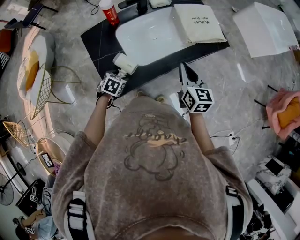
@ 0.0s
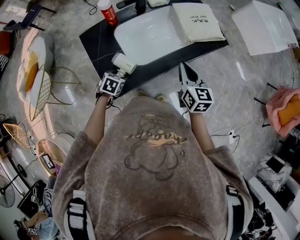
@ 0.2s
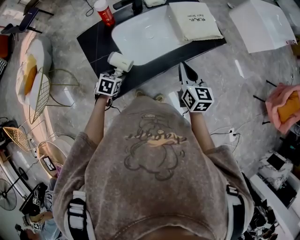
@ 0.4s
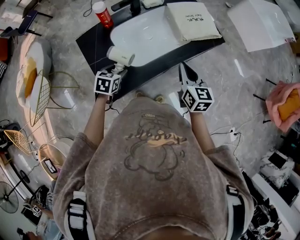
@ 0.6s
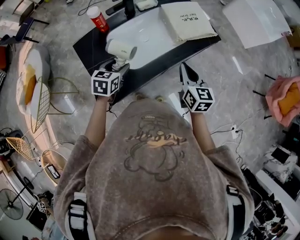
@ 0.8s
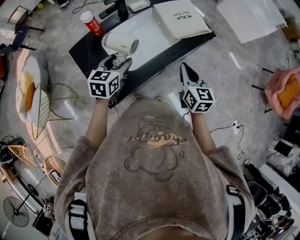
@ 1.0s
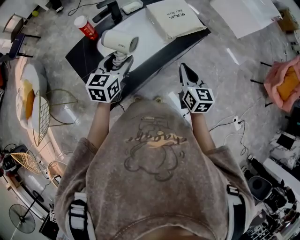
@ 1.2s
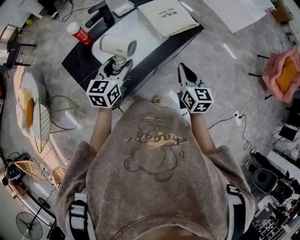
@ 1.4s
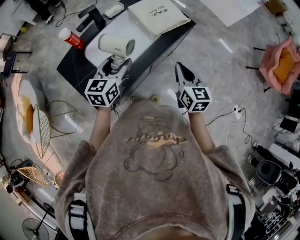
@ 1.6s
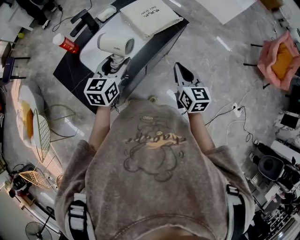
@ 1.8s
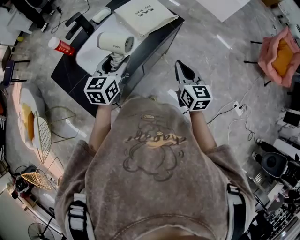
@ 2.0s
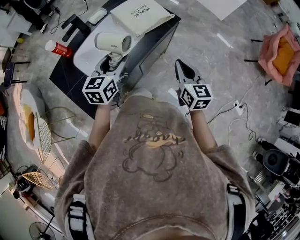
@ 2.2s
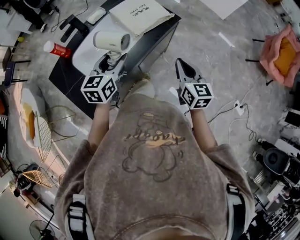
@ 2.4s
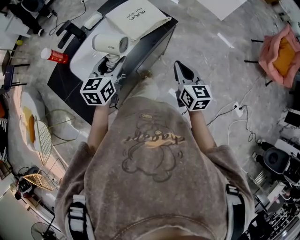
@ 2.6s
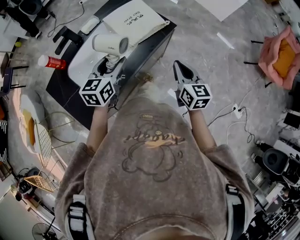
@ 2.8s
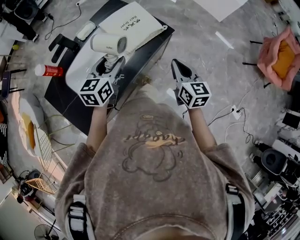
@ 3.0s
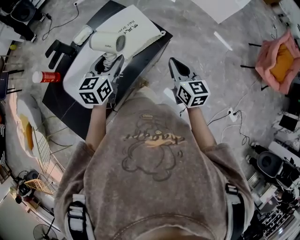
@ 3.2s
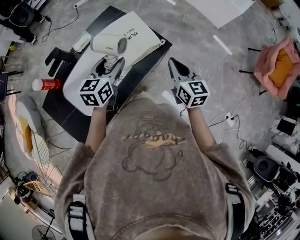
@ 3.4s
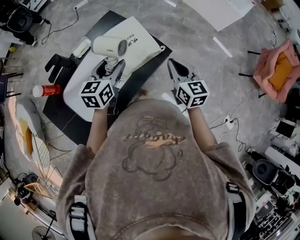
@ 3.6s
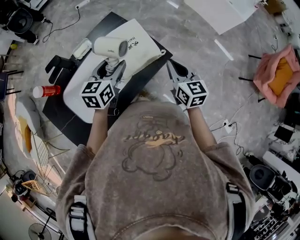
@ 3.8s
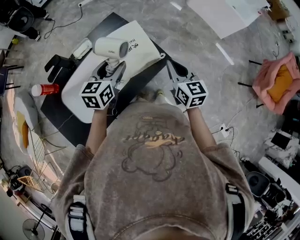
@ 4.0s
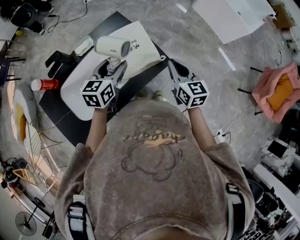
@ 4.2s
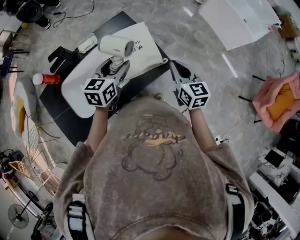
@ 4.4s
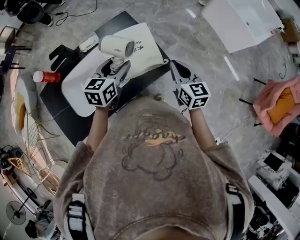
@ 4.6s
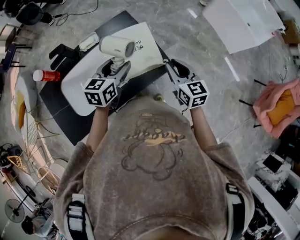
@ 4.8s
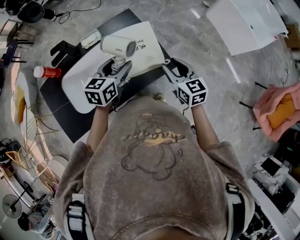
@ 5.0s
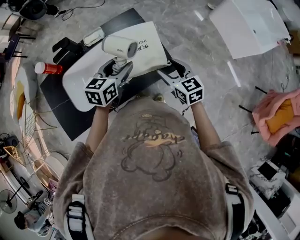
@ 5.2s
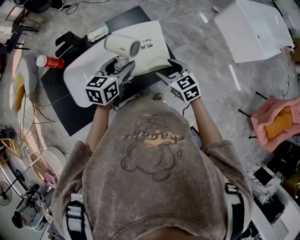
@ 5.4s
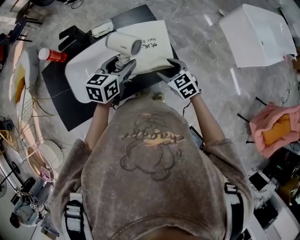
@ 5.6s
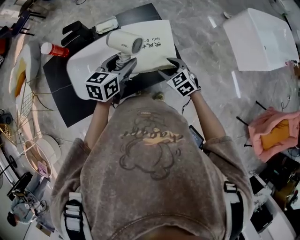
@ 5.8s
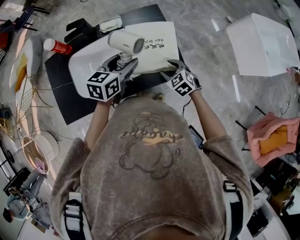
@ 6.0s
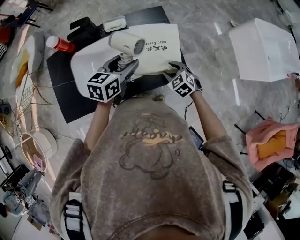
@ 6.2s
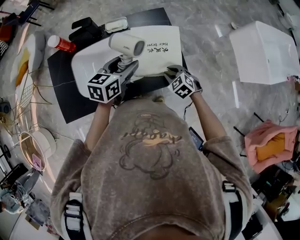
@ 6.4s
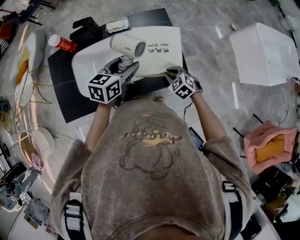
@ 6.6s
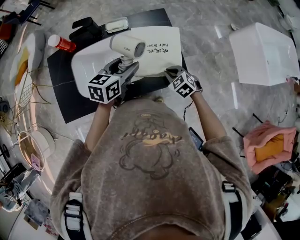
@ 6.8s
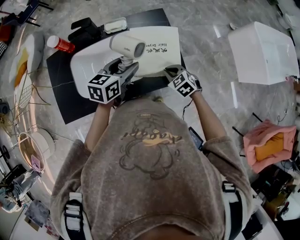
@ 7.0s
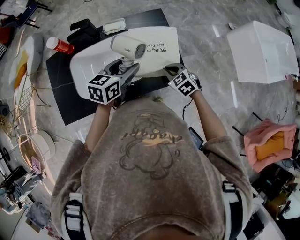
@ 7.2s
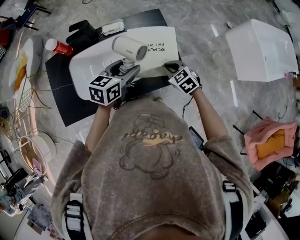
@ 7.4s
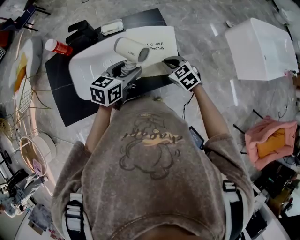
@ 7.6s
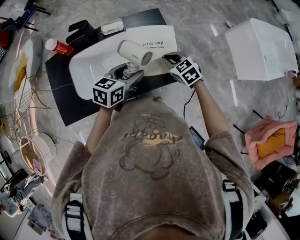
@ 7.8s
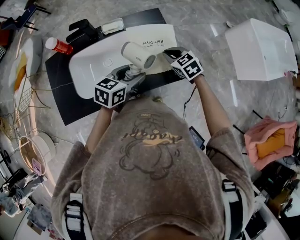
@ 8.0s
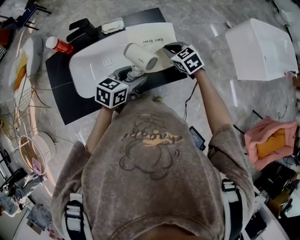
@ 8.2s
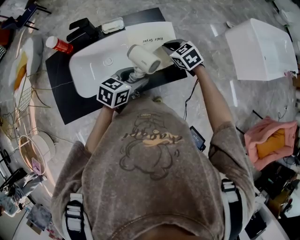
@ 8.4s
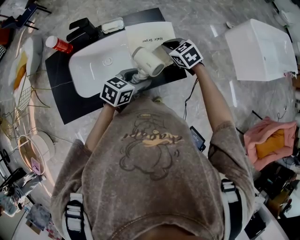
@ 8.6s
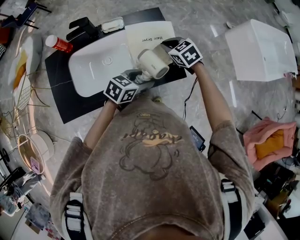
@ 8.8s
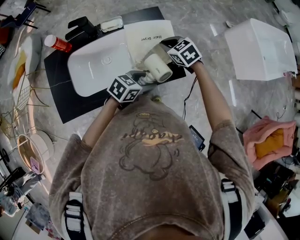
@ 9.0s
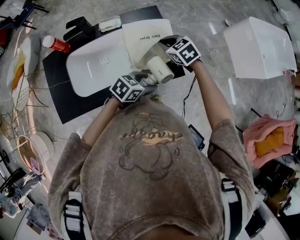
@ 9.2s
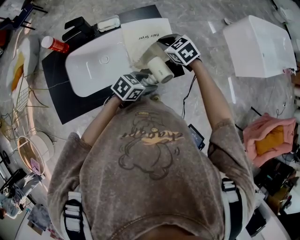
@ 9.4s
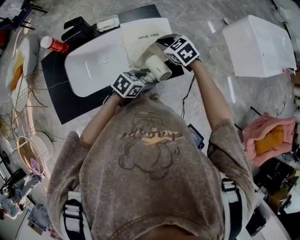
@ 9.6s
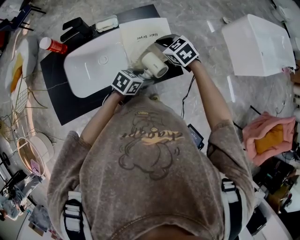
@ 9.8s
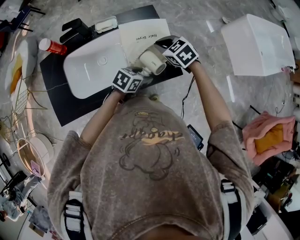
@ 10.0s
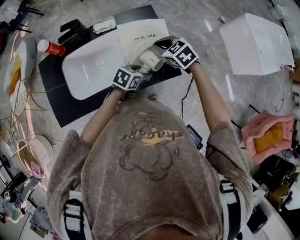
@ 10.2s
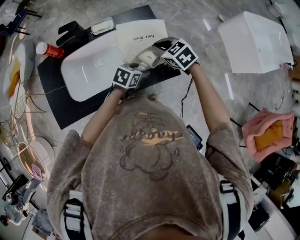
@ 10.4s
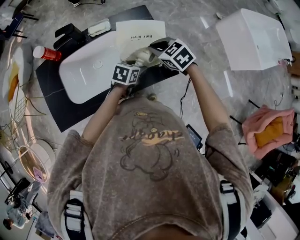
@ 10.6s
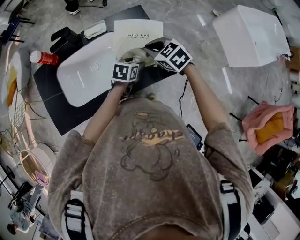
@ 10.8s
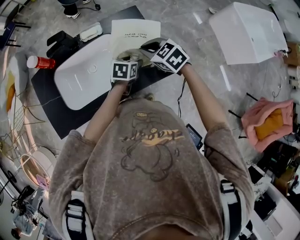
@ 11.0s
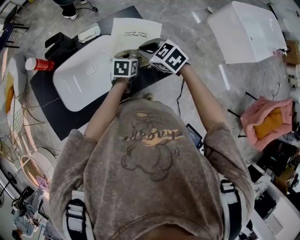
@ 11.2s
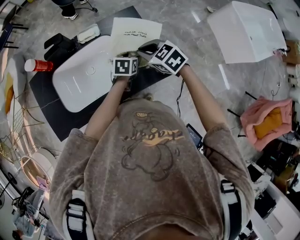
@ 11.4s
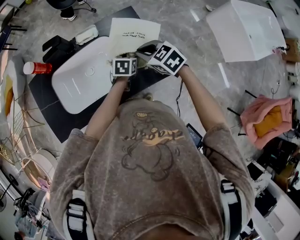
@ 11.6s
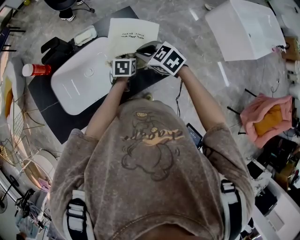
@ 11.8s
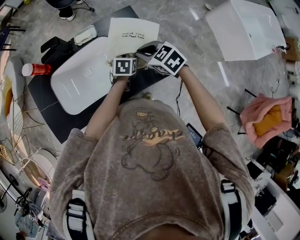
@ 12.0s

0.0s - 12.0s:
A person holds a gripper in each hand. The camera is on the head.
0.0s - 1.6s: The right gripper shifts about 10 cm to the right; the left gripper travels upward, to the right and forward by roughly 30 cm, and tilts its fingers about 50 degrees upward.
1.6s - 3.0s: Both grippers travel together forward and to the right, approximately 20 cm.
3.0s - 4.4s: Both grippers travel together forward, about 15 cm.
4.4s - 6.0s: The right gripper travels downward and to the left by about 20 cm, angles its fingers downward, by approximately 30 degrees, and opens.
6.0s - 7.6s: The right gripper shifts by approximately 5 cm, and closes its fingers.
7.6s - 9.0s: The right gripper heads forward, covering about 5 cm. Meanwhile the left gripper heads to the right, downward and backward, covering some 15 cm, and changes its angle by some 30 degrees.
9.0s - 10.4s: The left gripper heads downward, covering some 5 cm.
10.4s - 12.0s: The left gripper is displaced forward by some 10 cm.

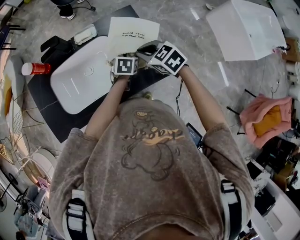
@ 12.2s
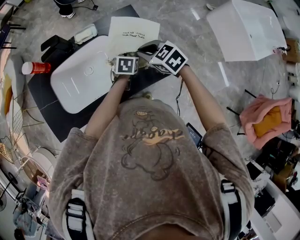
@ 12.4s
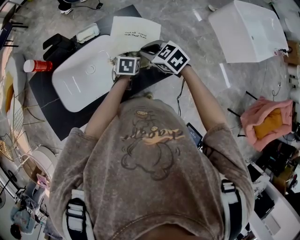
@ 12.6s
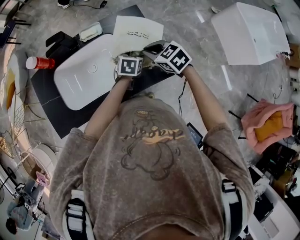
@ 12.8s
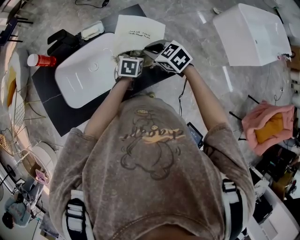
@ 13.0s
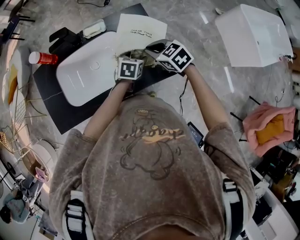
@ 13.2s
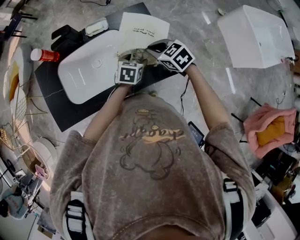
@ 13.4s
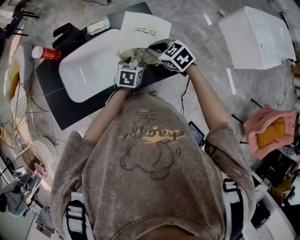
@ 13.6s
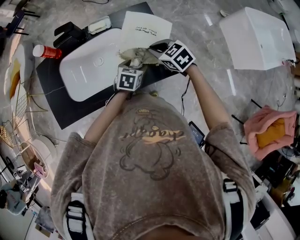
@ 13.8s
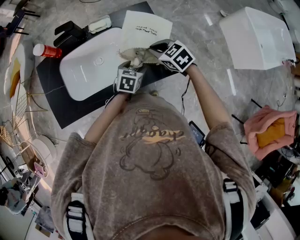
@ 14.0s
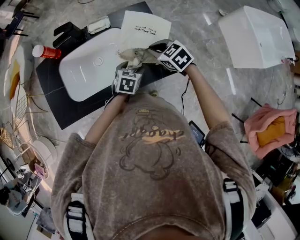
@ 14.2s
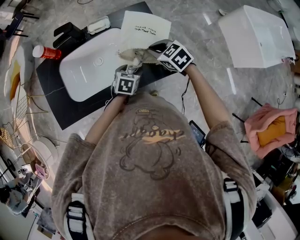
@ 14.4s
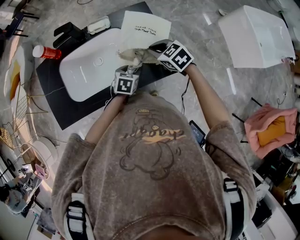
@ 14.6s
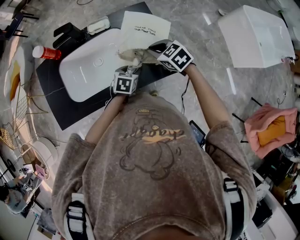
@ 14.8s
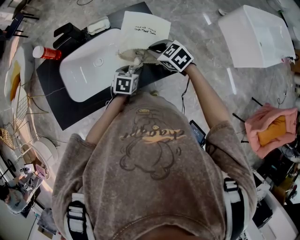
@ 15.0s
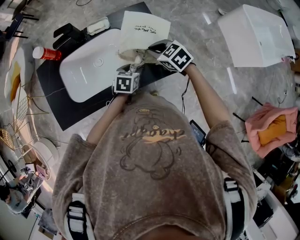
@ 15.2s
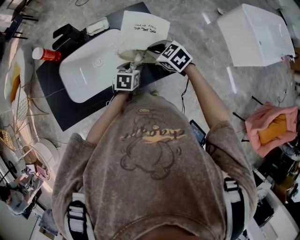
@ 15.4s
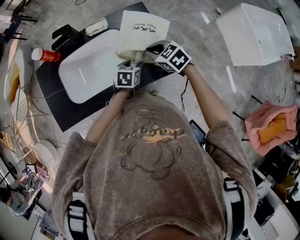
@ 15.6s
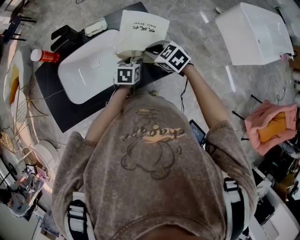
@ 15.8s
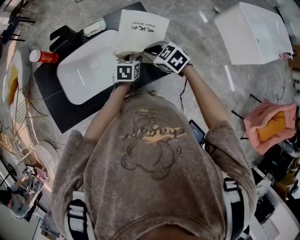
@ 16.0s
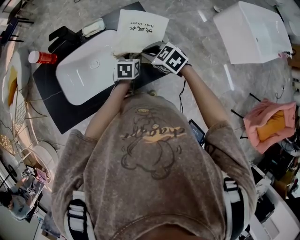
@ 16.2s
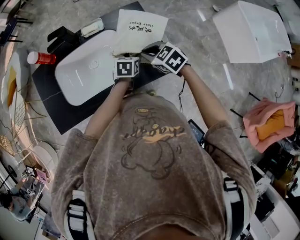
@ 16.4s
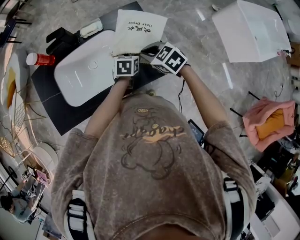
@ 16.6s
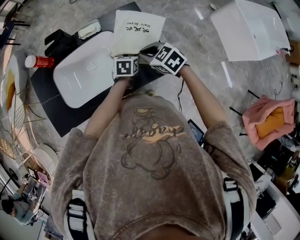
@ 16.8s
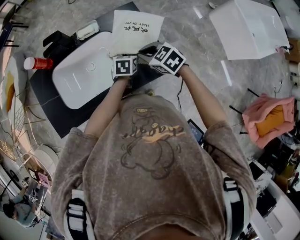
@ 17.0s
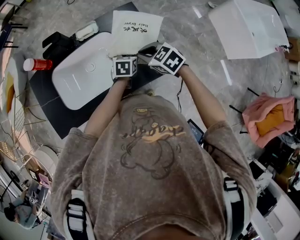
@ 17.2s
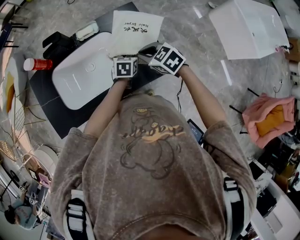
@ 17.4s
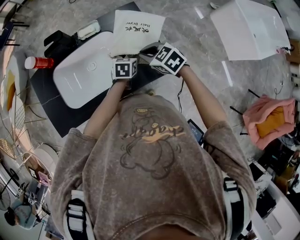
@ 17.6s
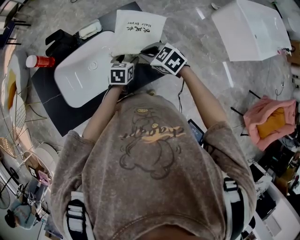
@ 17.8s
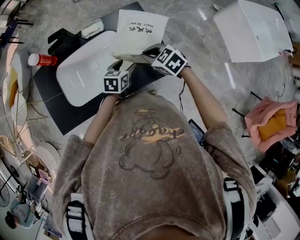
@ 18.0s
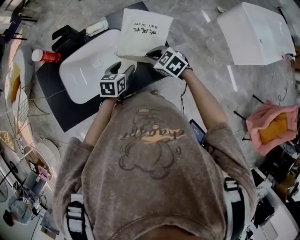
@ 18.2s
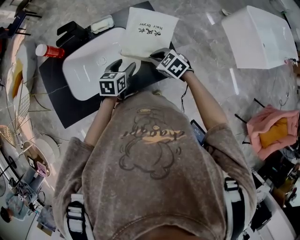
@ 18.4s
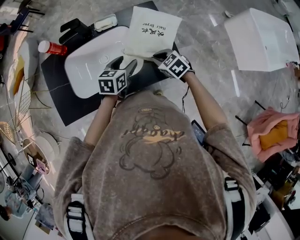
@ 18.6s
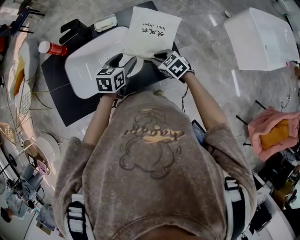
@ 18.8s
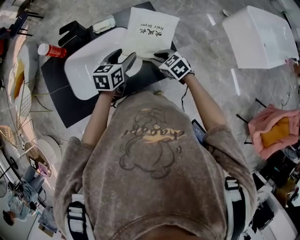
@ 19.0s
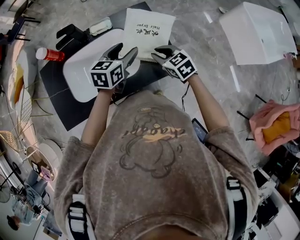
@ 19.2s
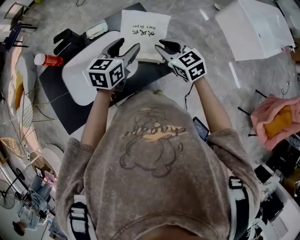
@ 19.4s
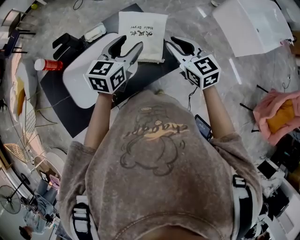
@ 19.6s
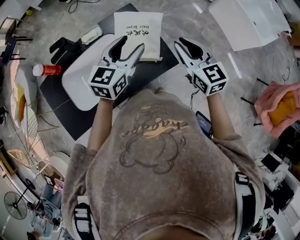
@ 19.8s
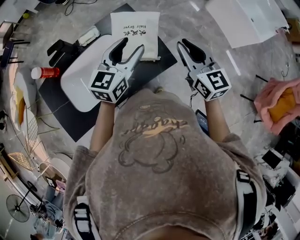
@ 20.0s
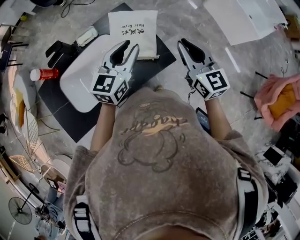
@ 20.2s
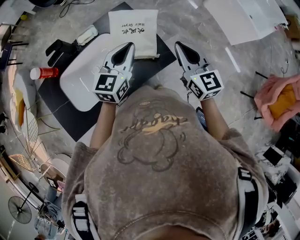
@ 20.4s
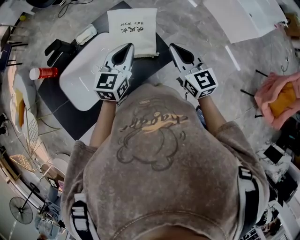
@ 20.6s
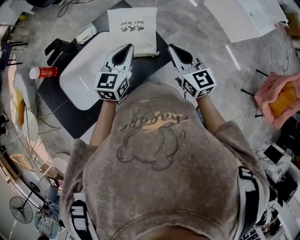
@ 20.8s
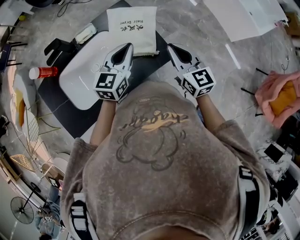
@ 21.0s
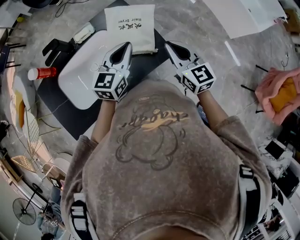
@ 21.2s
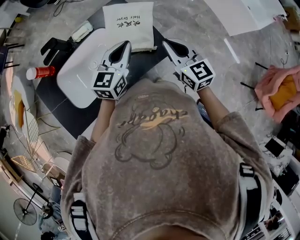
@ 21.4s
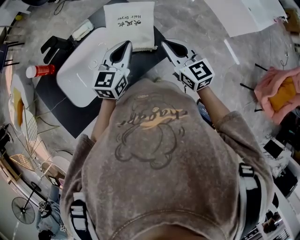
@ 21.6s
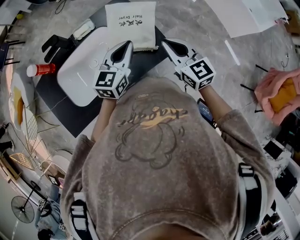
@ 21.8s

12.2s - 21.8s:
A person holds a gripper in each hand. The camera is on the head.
12.2s - 13.8s: The left gripper heads backward, covering roughly 5 cm.
13.8s - 15.4s: The grippers make only small movements.
15.4s - 17.0s: The left gripper travels forward by roughly 5 cm.
17.0s - 18.6s: The right gripper moves downward, some 5 cm. Meanwhile the left gripper goes roughly 10 cm to the left and upward.
18.6s - 20.2s: Both grippers move upward, approximately 20 cm. The right gripper tips its fingers upward by about 40 degrees, while the left gripper rotates roughly 30 degrees, and closes its fingers.
20.2s - 21.8s: The right gripper is displaced downward by some 5 cm; the left gripper changes place by approximately 5 cm.

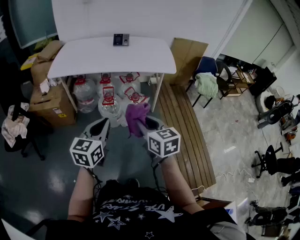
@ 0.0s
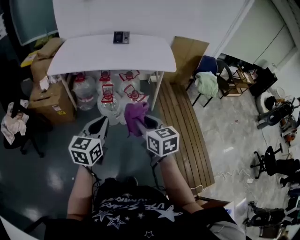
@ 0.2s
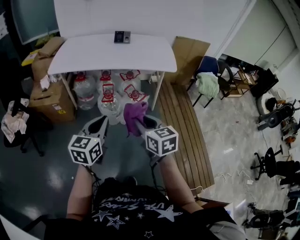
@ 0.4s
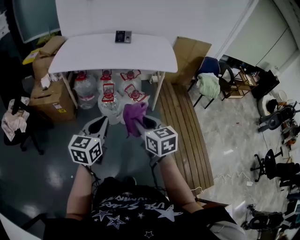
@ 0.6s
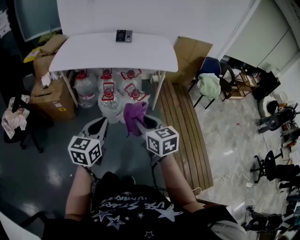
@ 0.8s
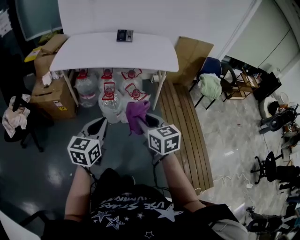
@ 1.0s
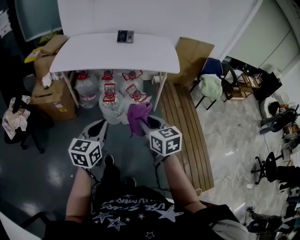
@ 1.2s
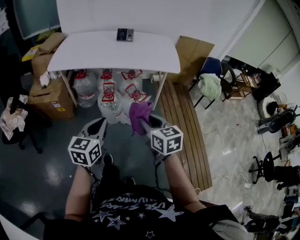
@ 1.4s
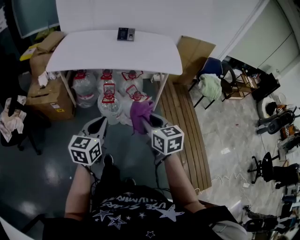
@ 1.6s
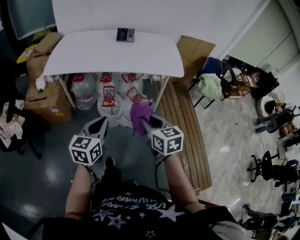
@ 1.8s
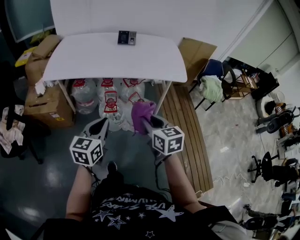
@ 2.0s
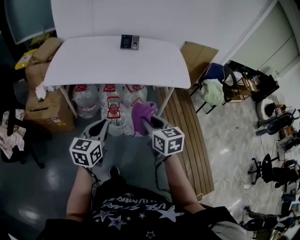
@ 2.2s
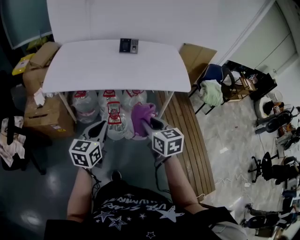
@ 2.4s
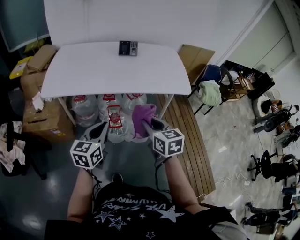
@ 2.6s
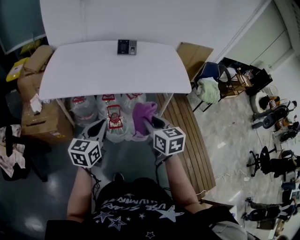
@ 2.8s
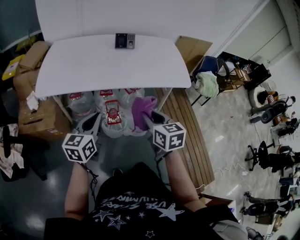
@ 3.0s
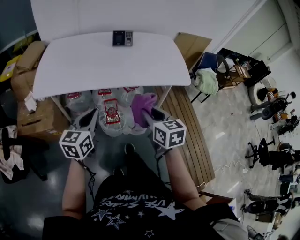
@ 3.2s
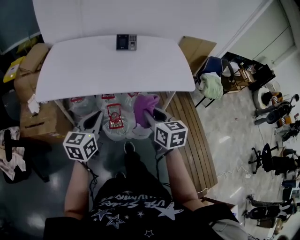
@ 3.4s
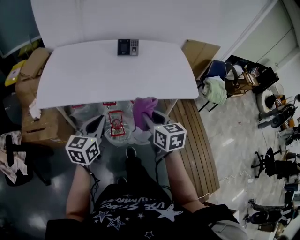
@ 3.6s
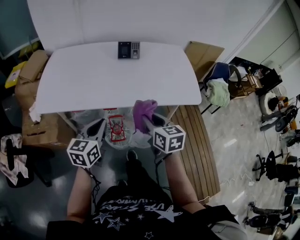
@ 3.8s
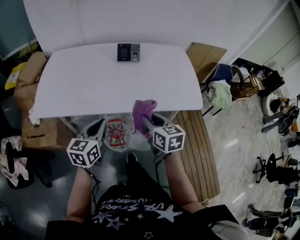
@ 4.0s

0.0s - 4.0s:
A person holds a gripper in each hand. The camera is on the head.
0.0s - 1.4s: The right gripper ends up some 5 cm from where it was.
1.4s - 2.6s: The grippers both shift forward and to the left by roughly 25 cm.
2.6s - 4.0s: Both grippers travel together forward, roughly 20 cm.
